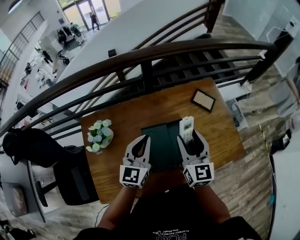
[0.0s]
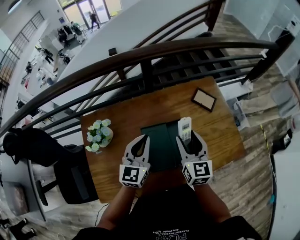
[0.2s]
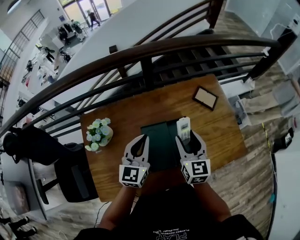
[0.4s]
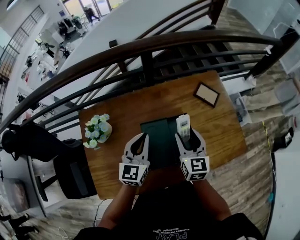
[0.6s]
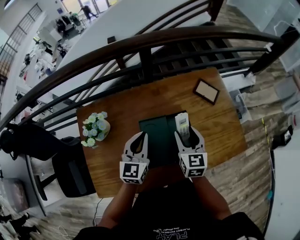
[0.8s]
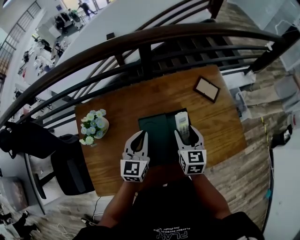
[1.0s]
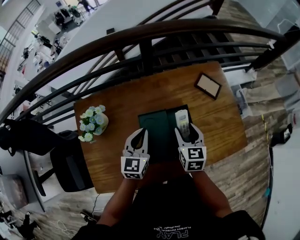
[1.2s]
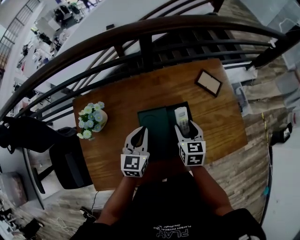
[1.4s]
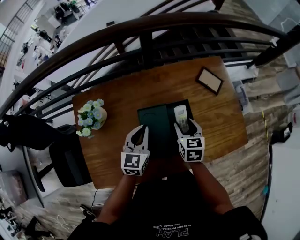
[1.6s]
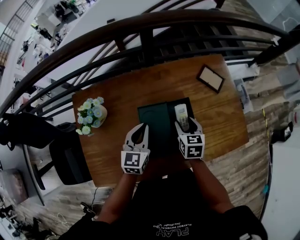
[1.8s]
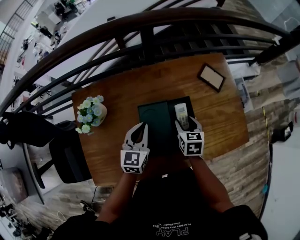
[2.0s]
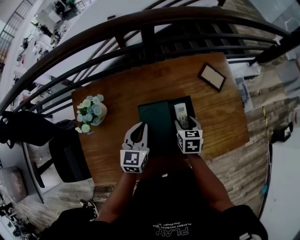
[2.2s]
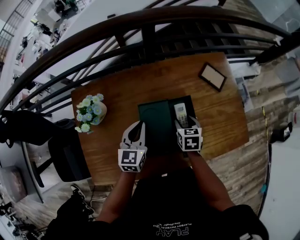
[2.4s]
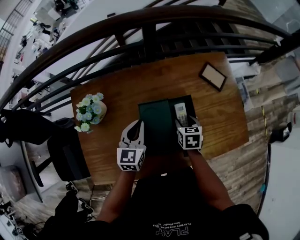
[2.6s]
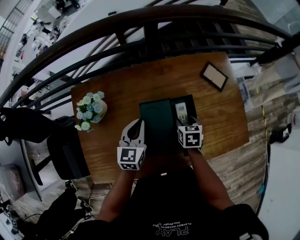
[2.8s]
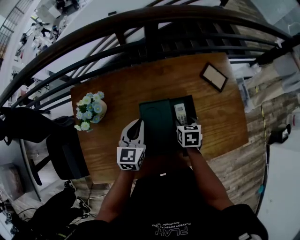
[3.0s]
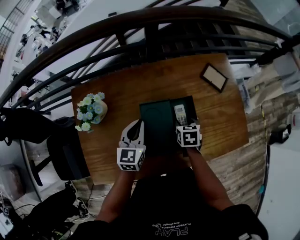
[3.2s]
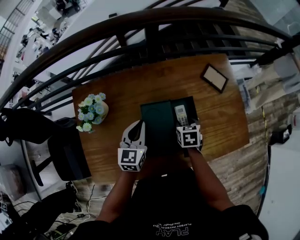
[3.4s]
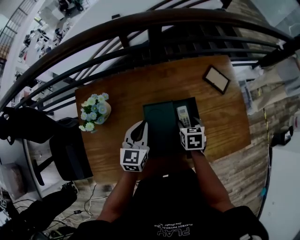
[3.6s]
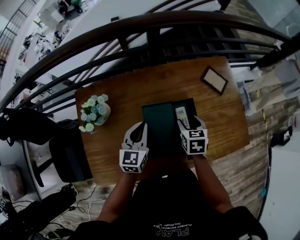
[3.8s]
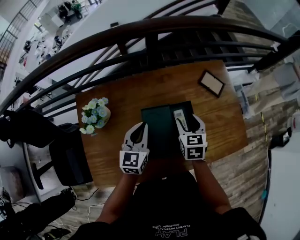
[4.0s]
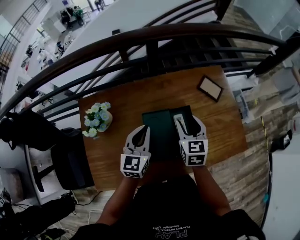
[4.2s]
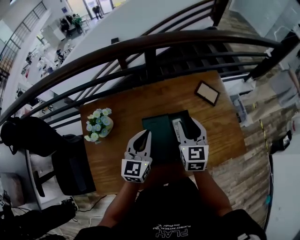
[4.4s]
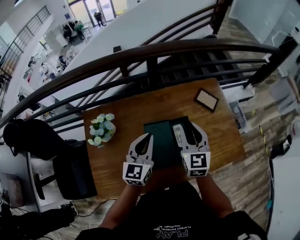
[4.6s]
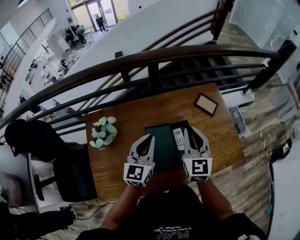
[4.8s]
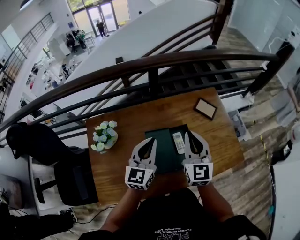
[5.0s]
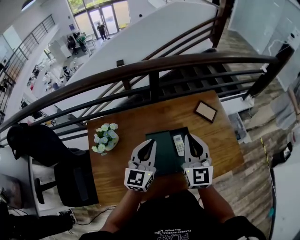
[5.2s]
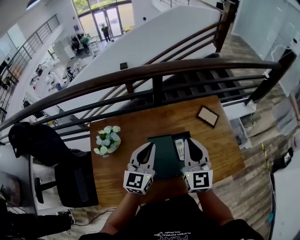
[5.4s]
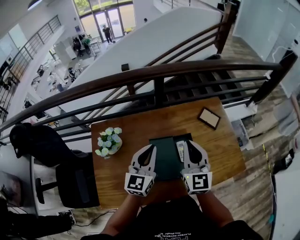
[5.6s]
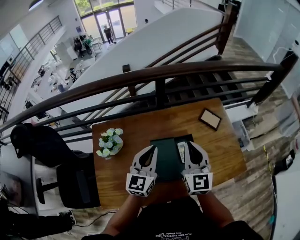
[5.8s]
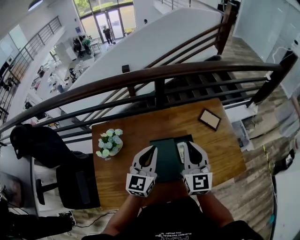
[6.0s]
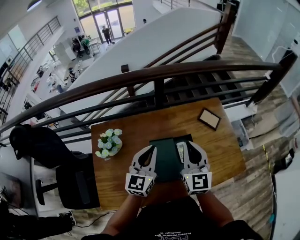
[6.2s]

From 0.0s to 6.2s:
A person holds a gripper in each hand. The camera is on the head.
From 0.0s to 1.6s: The left gripper goes about 10 cm downward. The right gripper shifts some 20 cm downward, and tips its fingers downward by roughly 30 degrees.
From 1.6s to 3.2s: The right gripper moves downward, about 10 cm.
From 3.2s to 4.6s: The right gripper shifts some 25 cm upward, points its fingers approximately 40 degrees further upward, and closes its fingers. The left gripper heads upward, covering some 10 cm.
From 4.6s to 6.2s: The right gripper moves upward, about 5 cm, and closes its fingers.

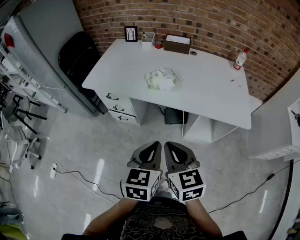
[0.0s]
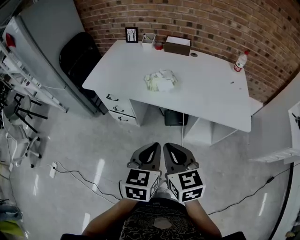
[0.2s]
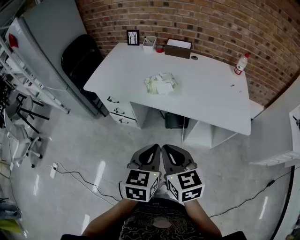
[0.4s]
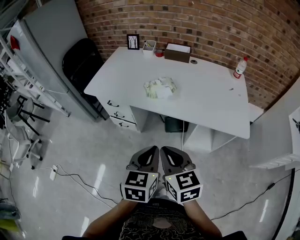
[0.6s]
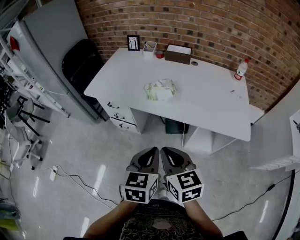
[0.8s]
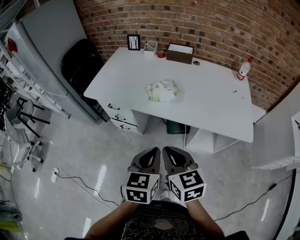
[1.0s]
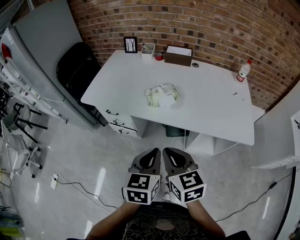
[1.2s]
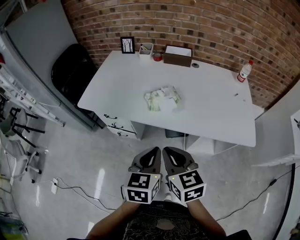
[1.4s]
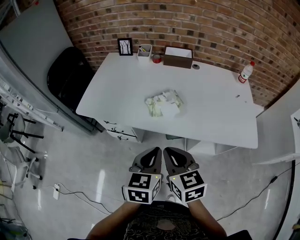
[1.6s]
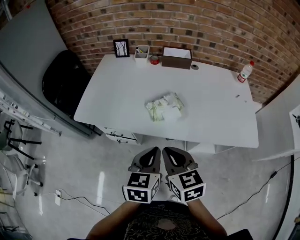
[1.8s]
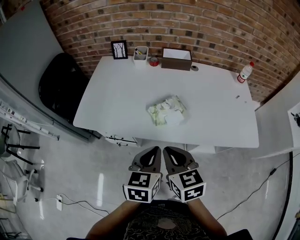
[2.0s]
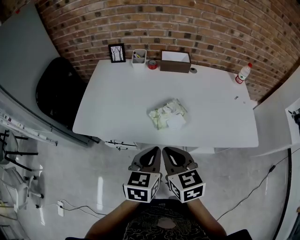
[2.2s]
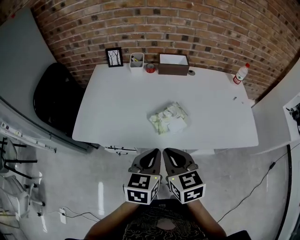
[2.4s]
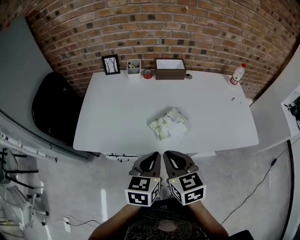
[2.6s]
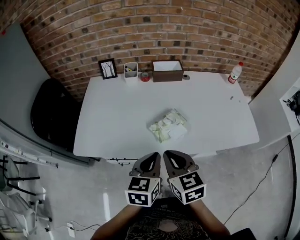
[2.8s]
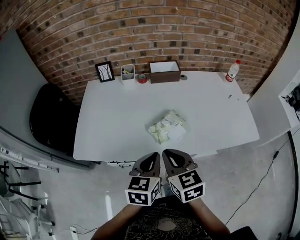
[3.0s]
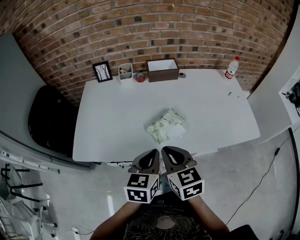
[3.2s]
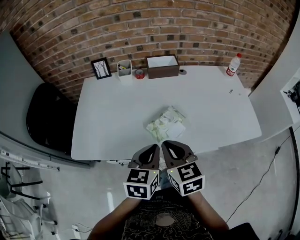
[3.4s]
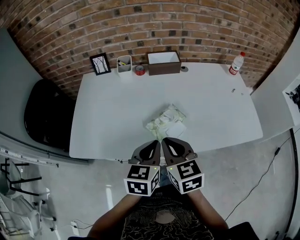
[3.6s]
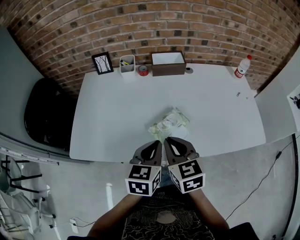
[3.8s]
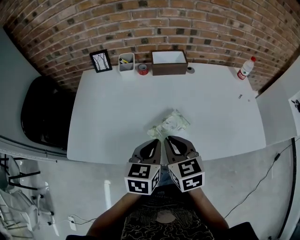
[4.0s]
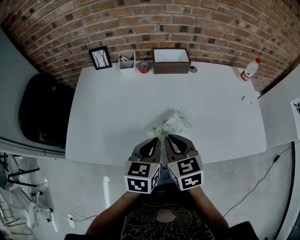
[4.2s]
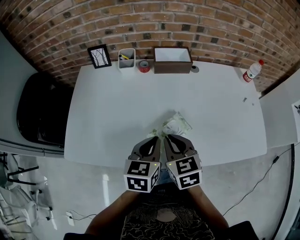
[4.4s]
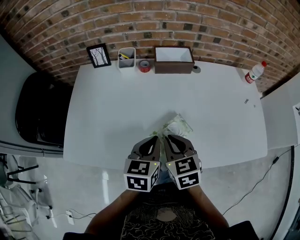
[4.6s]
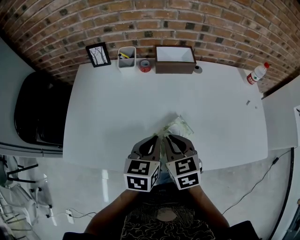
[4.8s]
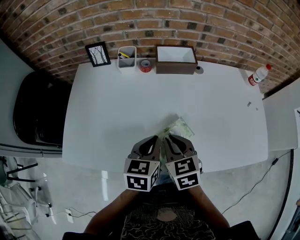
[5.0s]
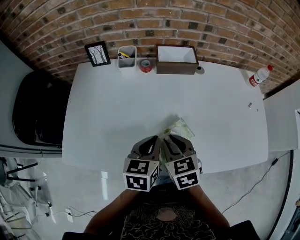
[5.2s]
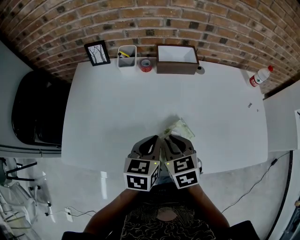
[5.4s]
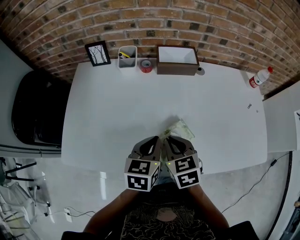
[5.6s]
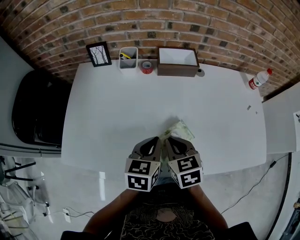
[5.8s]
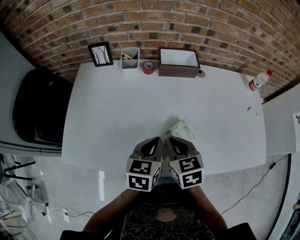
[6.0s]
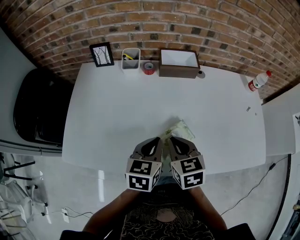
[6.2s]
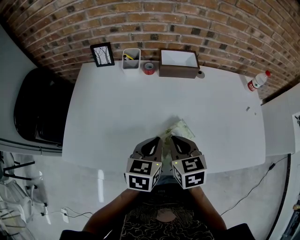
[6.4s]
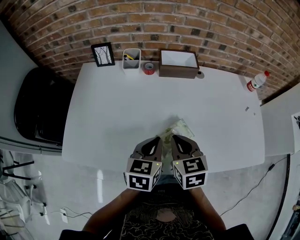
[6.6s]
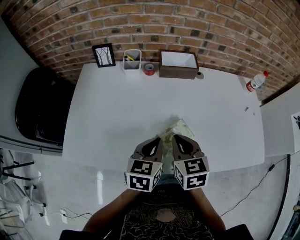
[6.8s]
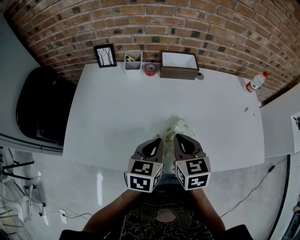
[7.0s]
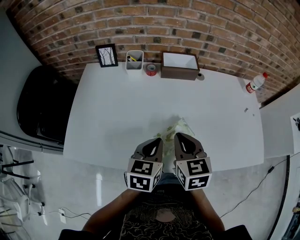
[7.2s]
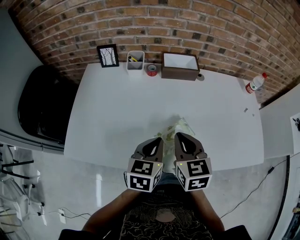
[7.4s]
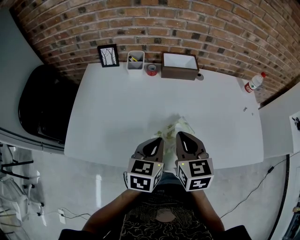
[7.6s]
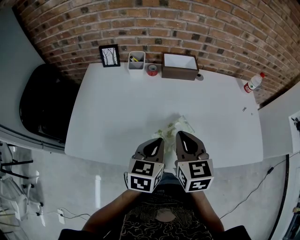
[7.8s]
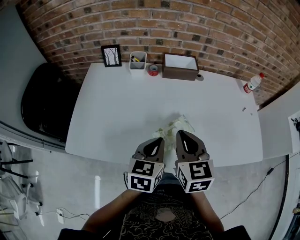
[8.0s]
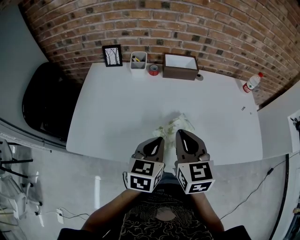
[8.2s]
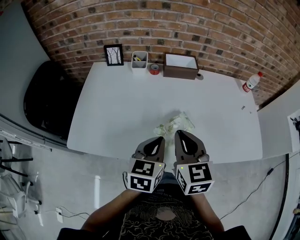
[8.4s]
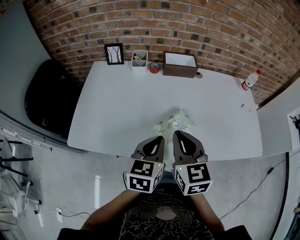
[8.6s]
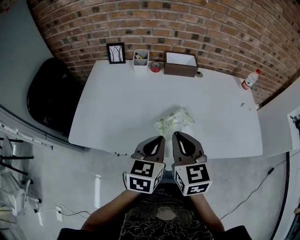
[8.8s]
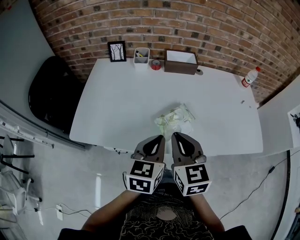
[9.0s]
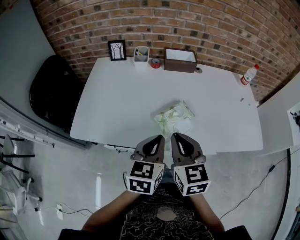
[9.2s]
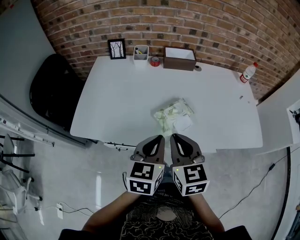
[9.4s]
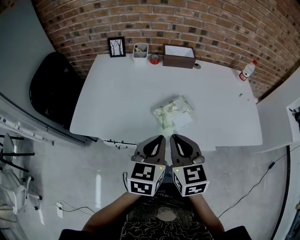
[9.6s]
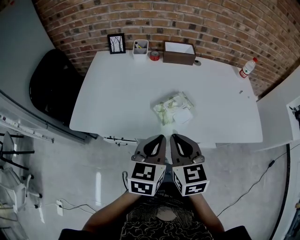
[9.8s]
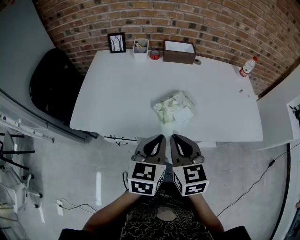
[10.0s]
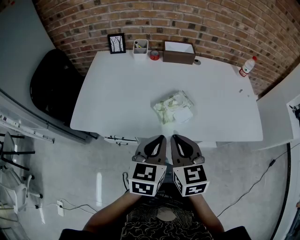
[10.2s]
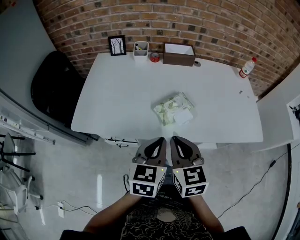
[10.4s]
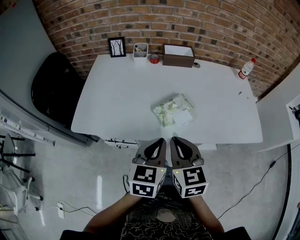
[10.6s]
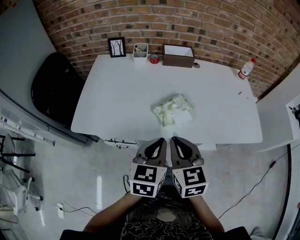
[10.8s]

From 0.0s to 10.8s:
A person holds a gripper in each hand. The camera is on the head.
From 0.0s to 1.6s: Both grippers move forward, roughly 15 cm.
From 1.6s to 3.0s: The grippers both shift forward and to the left by approximately 15 cm.
From 3.0s to 4.6s: The grippers both shift forward and downward by roughly 15 cm.
From 4.6s to 6.2s: The grippers make only small movements.
From 6.2s to 7.8s: The right gripper moves upward, approximately 10 cm; the left gripper changes place by approximately 5 cm.
From 7.8s to 9.2s: The grippers both shift backward by some 10 cm.
From 9.2s to 10.8s: The right gripper shifts some 5 cm backward, while the left gripper changes place by approximately 5 cm.

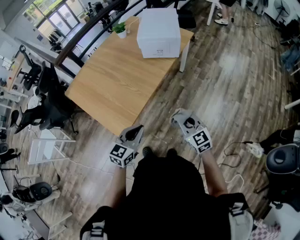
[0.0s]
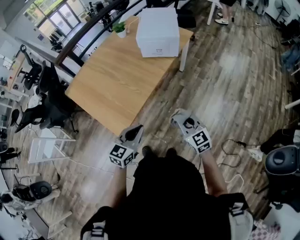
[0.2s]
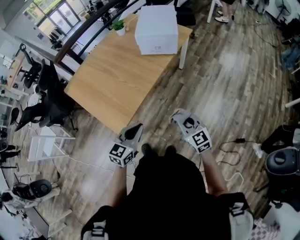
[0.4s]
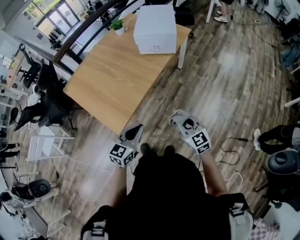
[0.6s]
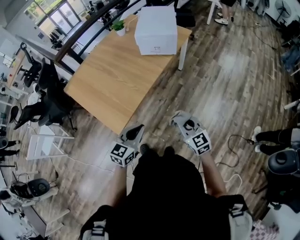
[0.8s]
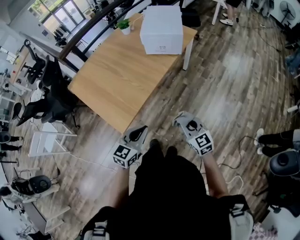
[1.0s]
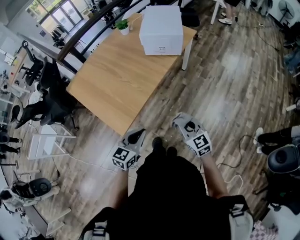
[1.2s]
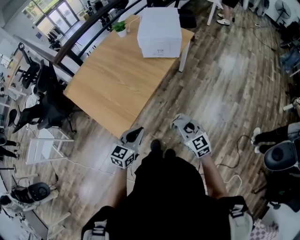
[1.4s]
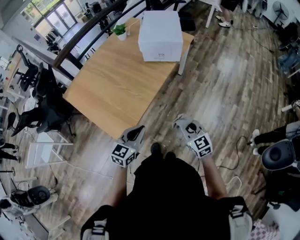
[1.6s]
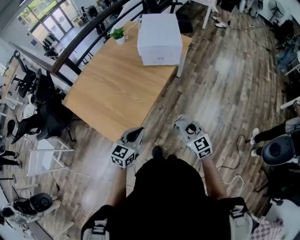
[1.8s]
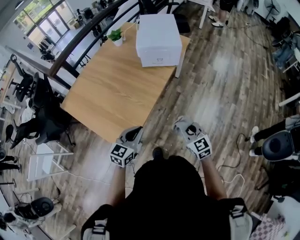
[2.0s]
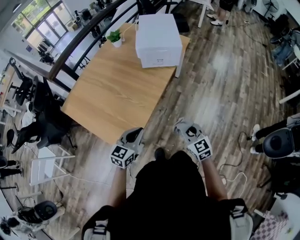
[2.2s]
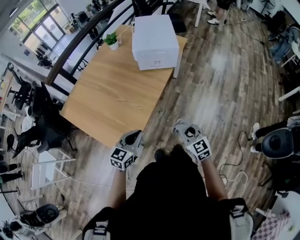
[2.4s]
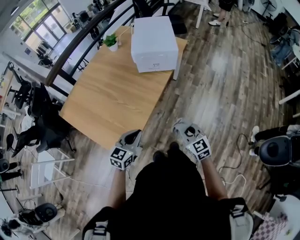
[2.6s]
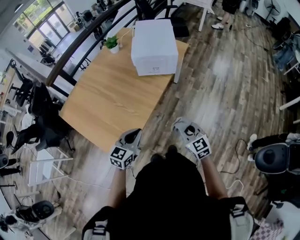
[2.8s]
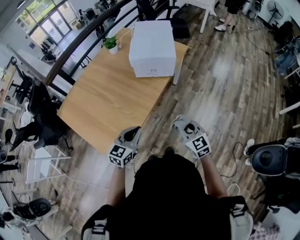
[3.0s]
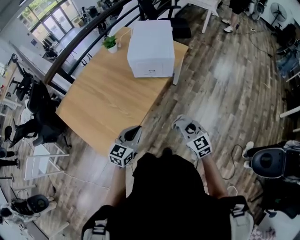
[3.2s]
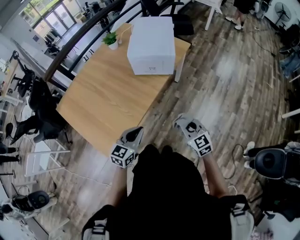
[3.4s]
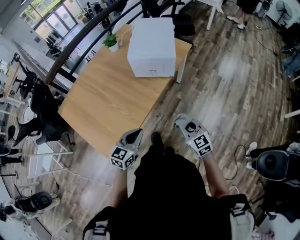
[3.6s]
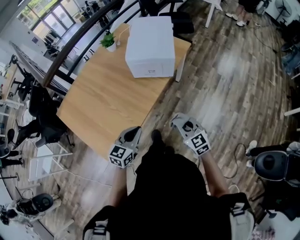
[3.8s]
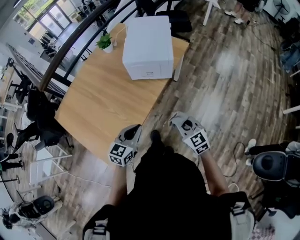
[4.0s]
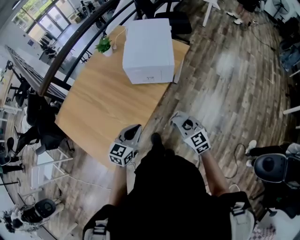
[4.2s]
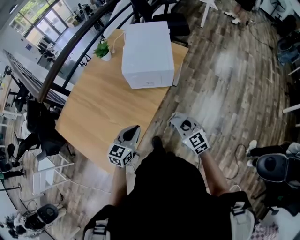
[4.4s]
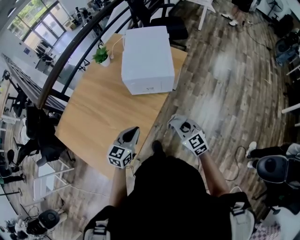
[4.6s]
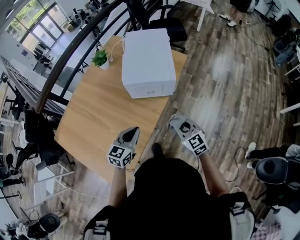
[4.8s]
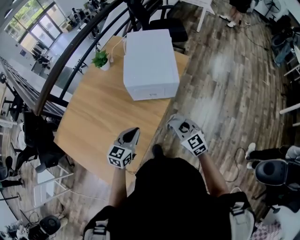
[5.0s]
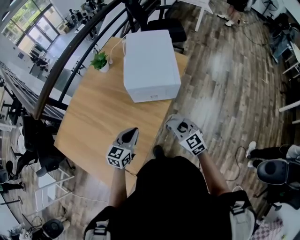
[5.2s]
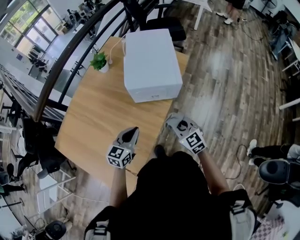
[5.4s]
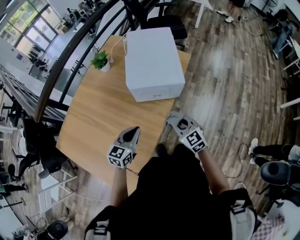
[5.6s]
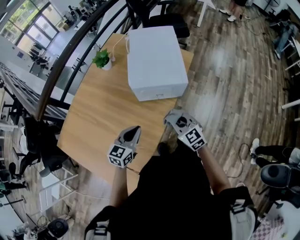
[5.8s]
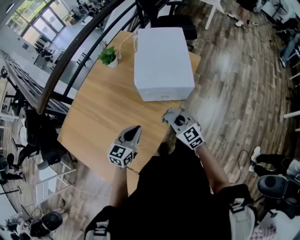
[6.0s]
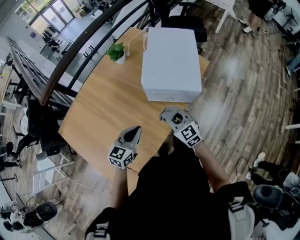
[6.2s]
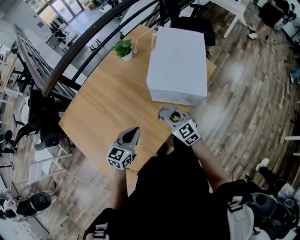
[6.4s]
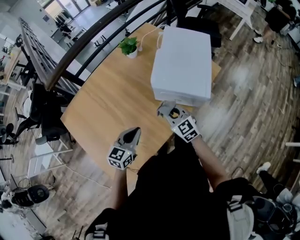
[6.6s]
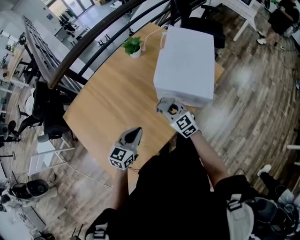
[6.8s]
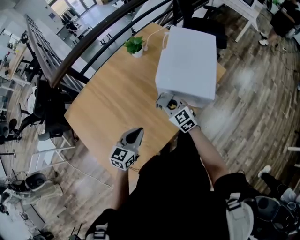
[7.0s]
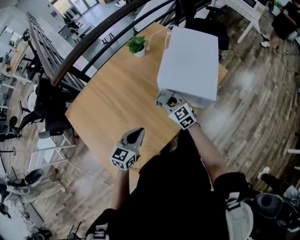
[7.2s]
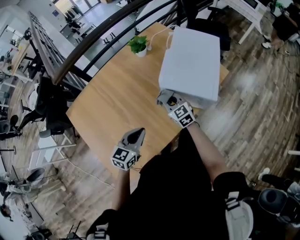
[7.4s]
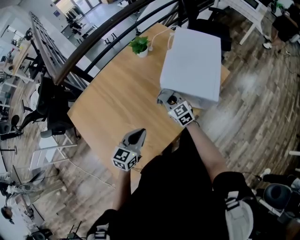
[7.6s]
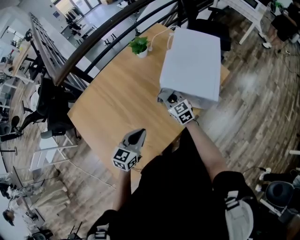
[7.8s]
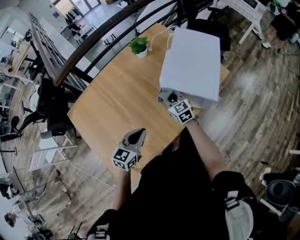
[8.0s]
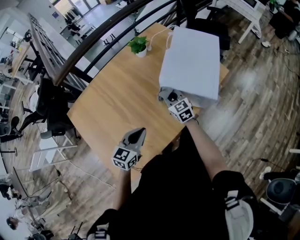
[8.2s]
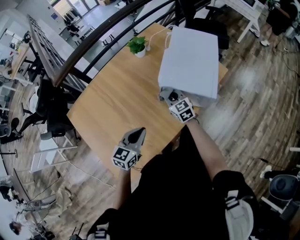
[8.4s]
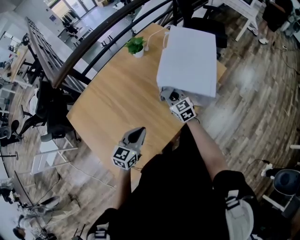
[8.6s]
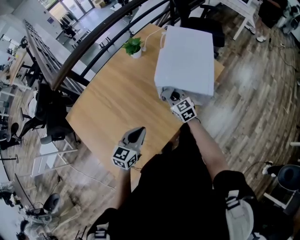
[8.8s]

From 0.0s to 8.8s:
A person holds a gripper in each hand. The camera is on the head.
From 0.0s to 1.4s: The grippers move only a little.
From 1.4s to 3.0s: Both grippers move forward, some 15 cm.
From 3.0s to 4.4s: The two grippers go roughly 15 cm forward.
From 4.4s to 5.8s: Both grippers travel together forward and to the left, approximately 15 cm.
From 5.8s to 7.4s: The left gripper goes roughly 5 cm to the left, while the right gripper is displaced forward and to the left by roughly 20 cm.
From 7.4s to 8.8s: There are only small adjustments of the grippers.
